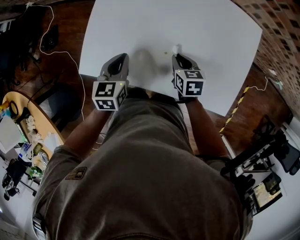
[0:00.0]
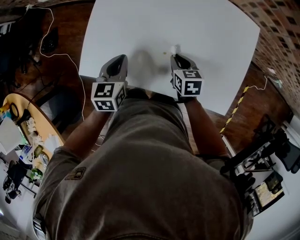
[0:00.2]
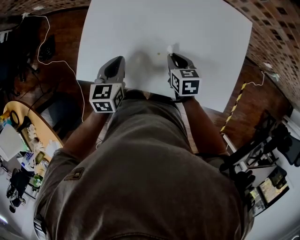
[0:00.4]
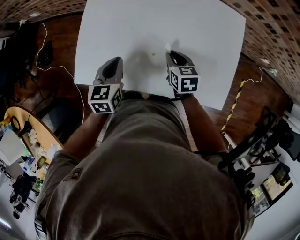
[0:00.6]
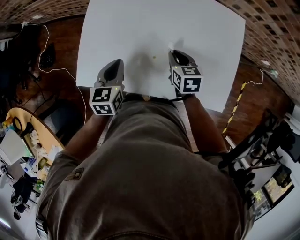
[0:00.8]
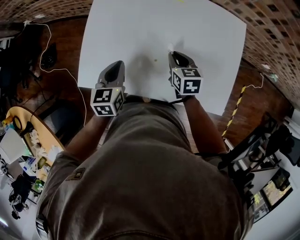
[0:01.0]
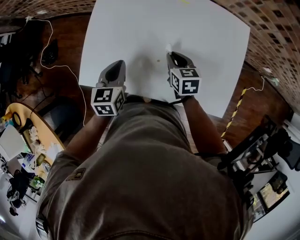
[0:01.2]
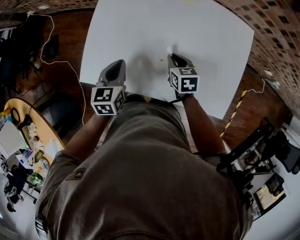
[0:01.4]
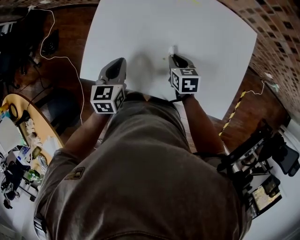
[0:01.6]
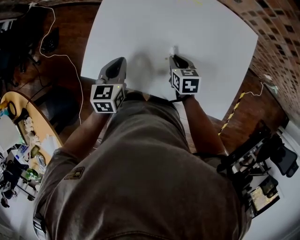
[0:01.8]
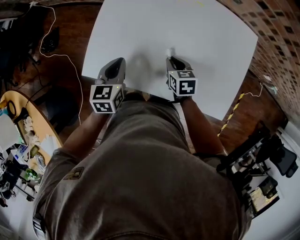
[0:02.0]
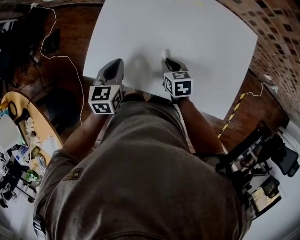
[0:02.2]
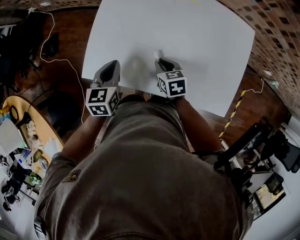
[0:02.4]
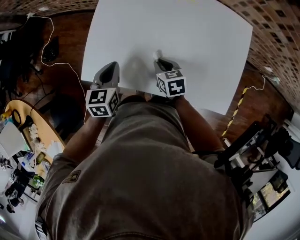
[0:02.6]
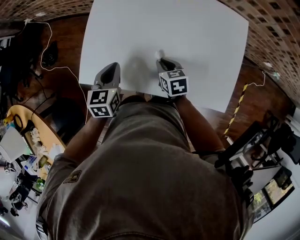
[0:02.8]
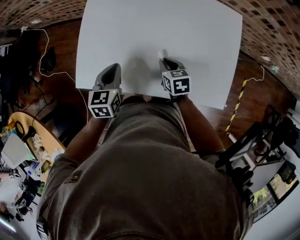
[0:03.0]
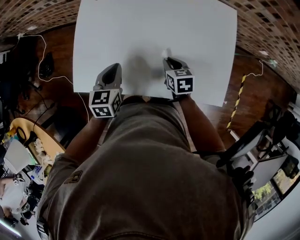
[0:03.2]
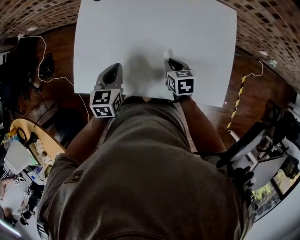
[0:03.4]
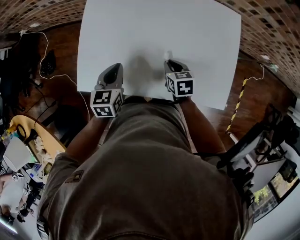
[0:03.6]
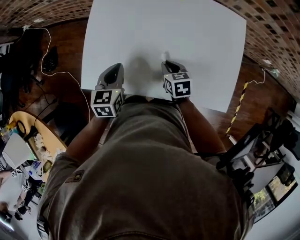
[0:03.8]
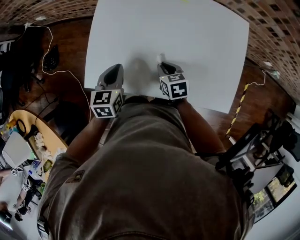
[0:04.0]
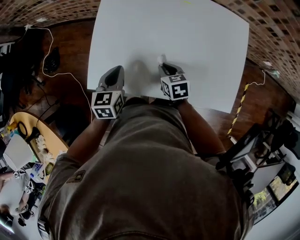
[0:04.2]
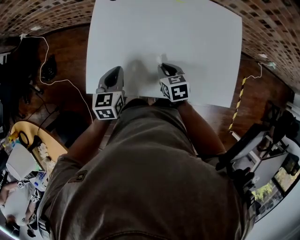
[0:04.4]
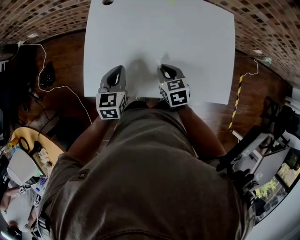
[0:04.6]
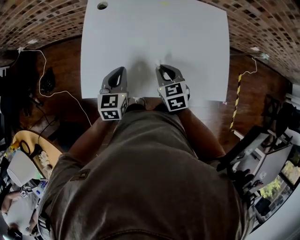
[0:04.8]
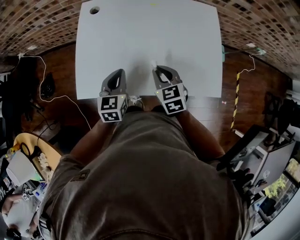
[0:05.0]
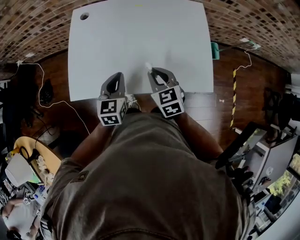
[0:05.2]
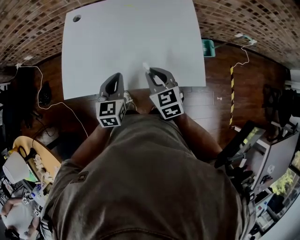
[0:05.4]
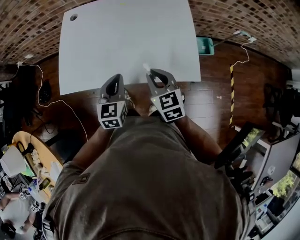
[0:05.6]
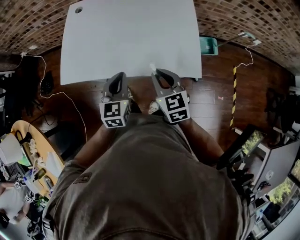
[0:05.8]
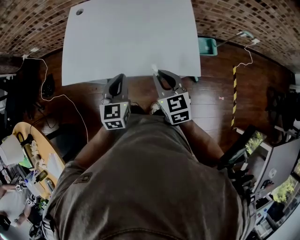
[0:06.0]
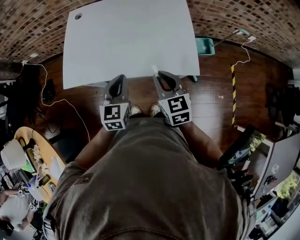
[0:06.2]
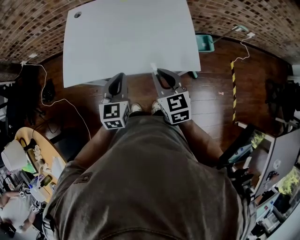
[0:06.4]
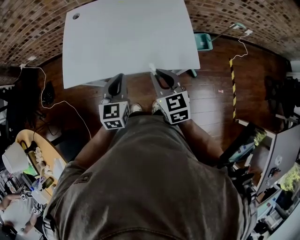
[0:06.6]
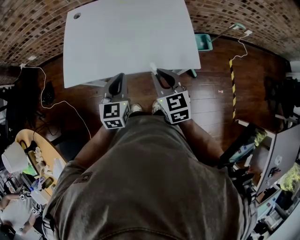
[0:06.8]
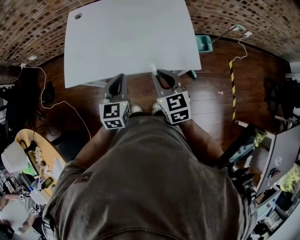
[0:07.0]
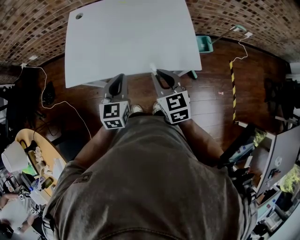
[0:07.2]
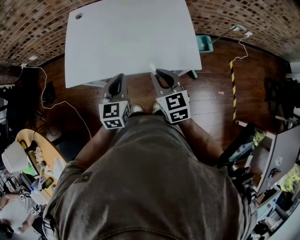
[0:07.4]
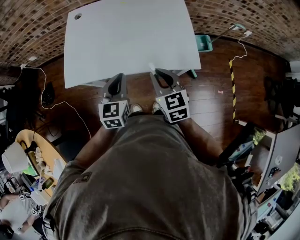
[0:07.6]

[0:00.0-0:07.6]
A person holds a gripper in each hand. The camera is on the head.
0:01.6 to 0:03.0: The grippers move only a little.
0:03.0 to 0:04.6: The right gripper moves some 5 cm.
0:04.6 to 0:06.0: The left gripper heads to the right and backward, covering approximately 25 cm. The right gripper goes about 25 cm backward, to the right and upward, and turns by some 20 degrees.
0:06.0 to 0:07.6: There are only small adjustments of the grippers.

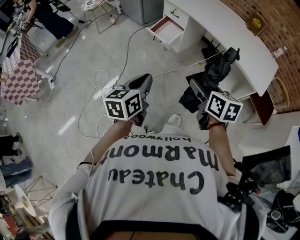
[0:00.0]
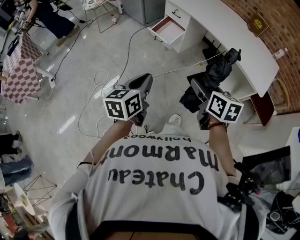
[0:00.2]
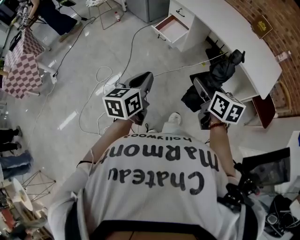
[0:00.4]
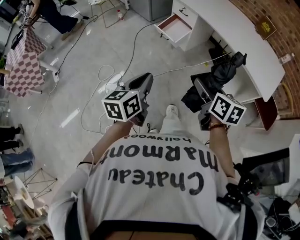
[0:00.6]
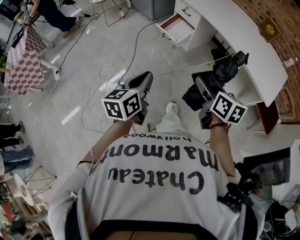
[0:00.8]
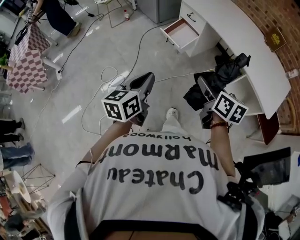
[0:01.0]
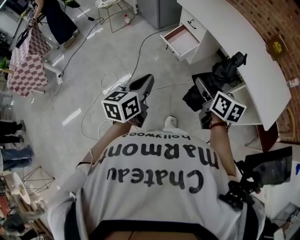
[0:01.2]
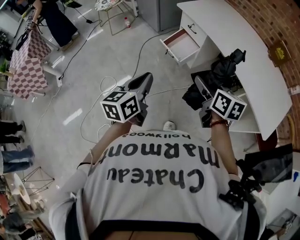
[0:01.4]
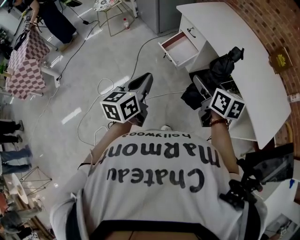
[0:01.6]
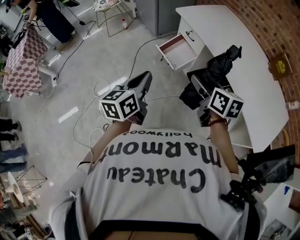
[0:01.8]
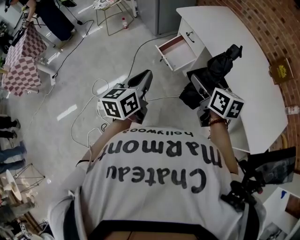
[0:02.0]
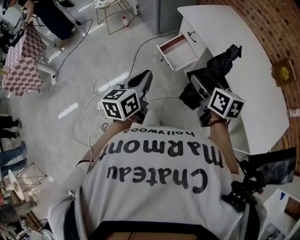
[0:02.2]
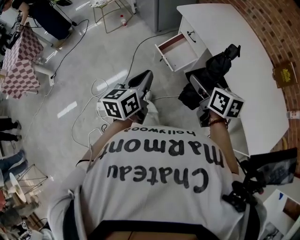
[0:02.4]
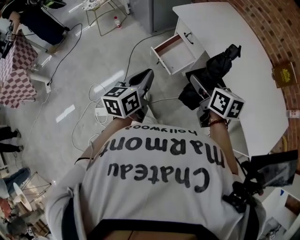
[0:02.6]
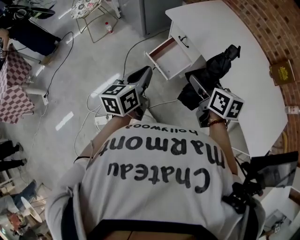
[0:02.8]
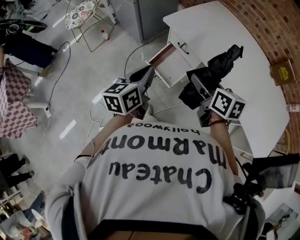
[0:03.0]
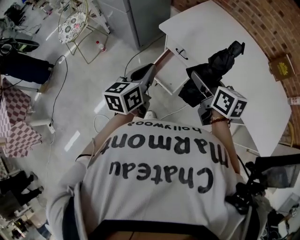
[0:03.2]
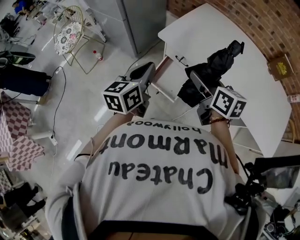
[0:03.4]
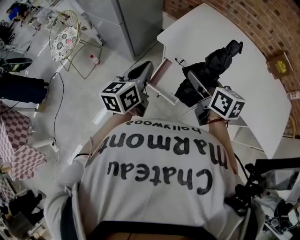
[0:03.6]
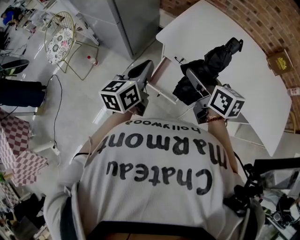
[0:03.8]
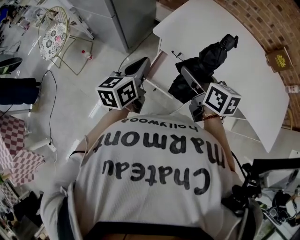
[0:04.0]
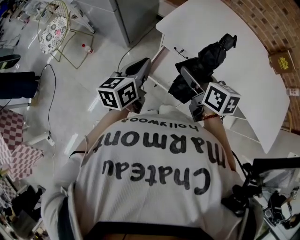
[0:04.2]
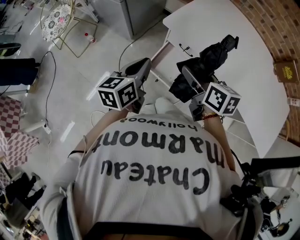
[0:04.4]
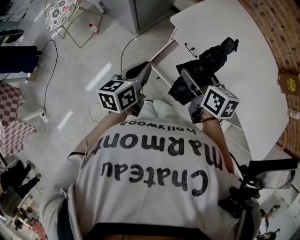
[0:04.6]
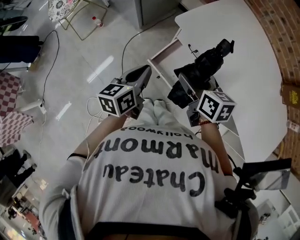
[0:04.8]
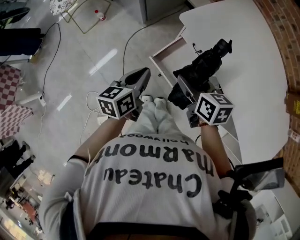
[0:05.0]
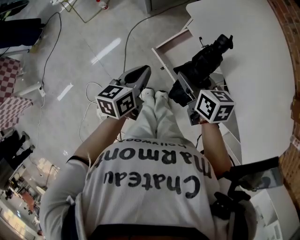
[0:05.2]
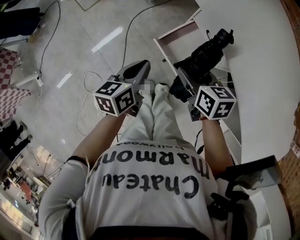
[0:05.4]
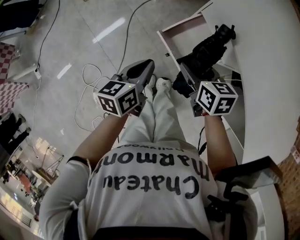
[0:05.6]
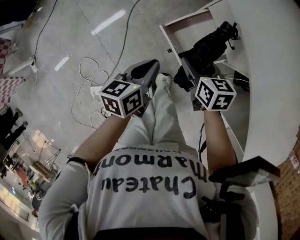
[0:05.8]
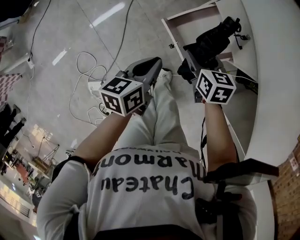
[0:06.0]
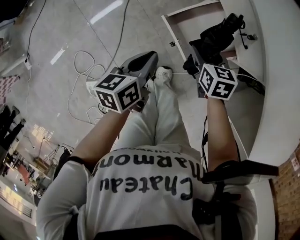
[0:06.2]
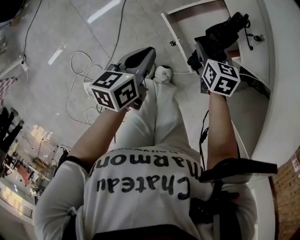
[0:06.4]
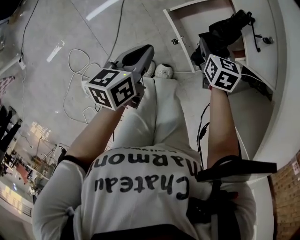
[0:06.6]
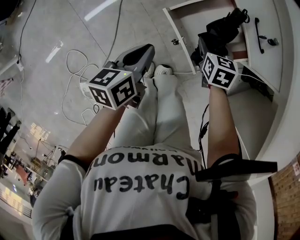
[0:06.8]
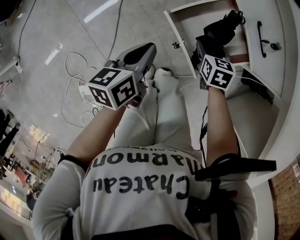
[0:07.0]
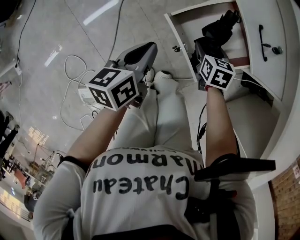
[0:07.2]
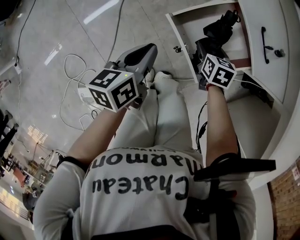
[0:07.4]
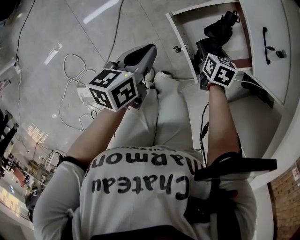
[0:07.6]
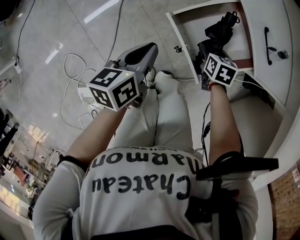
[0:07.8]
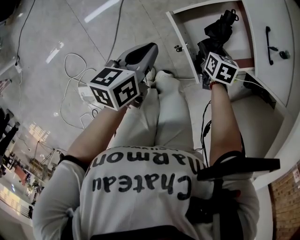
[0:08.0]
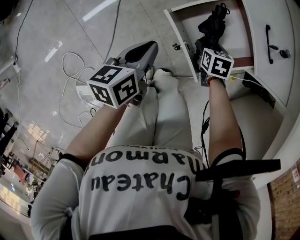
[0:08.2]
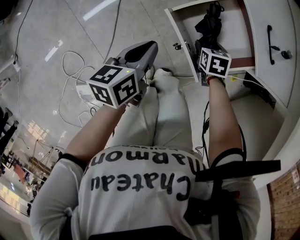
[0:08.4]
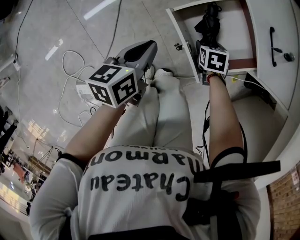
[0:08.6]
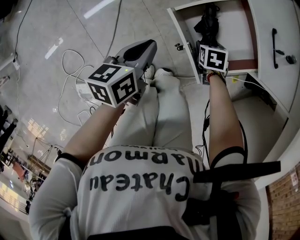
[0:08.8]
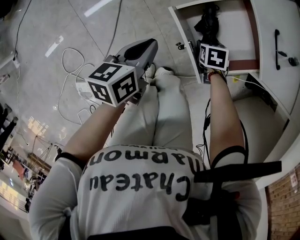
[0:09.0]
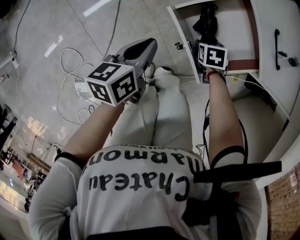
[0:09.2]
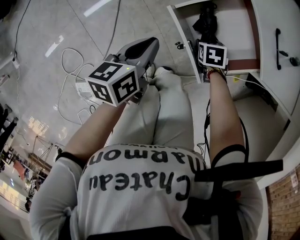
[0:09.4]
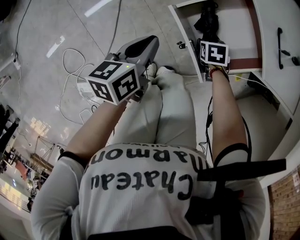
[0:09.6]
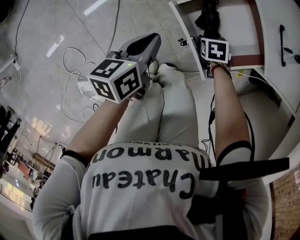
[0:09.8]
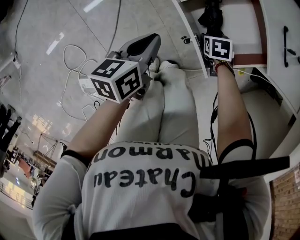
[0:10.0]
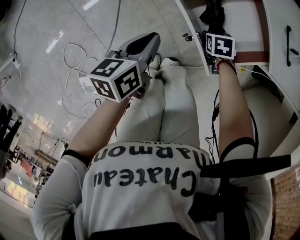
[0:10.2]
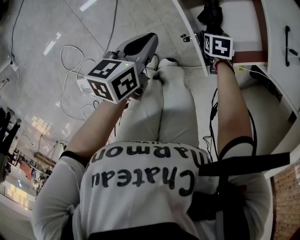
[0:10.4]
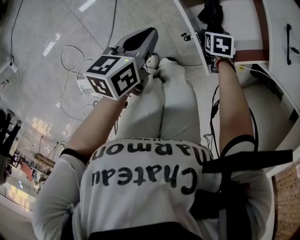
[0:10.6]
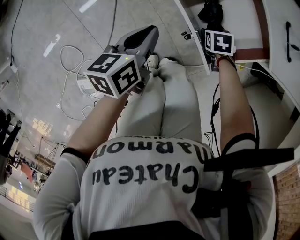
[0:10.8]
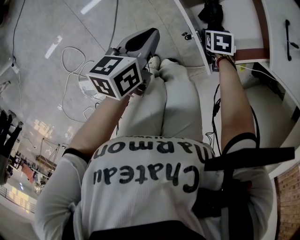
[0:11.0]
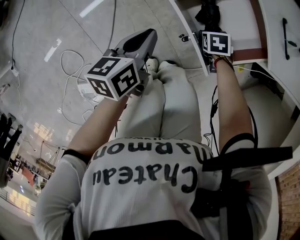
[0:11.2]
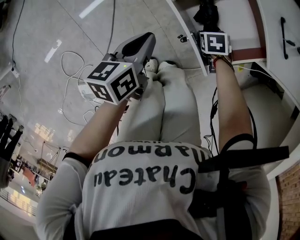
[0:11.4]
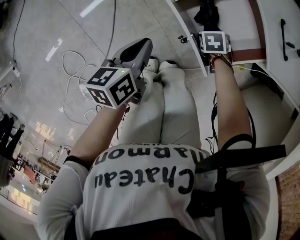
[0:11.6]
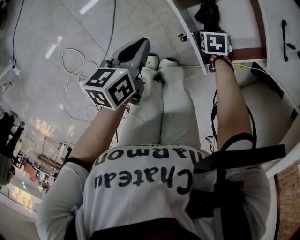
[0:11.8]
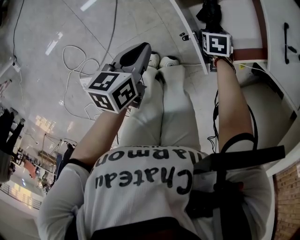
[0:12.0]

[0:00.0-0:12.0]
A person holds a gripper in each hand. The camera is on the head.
0:00.0 to 0:01.6: The two grippers go approximately 25 cm forward.
0:01.6 to 0:03.0: Both grippers move forward, some 30 cm.
0:03.0 to 0:04.4: The grippers both shift forward and to the left by about 15 cm.
0:04.4 to 0:06.0: The two grippers go approximately 30 cm downward. The right gripper rotates some 30 degrees; the left gripper rotates approximately 30 degrees.
0:06.0 to 0:07.6: The right gripper travels downward by roughly 20 cm, while the left gripper travels downward by about 15 cm.
0:07.6 to 0:09.0: The right gripper moves downward, approximately 10 cm, and swivels about 20 degrees.
0:09.0 to 0:12.0: The grippers stay close to where they were, moving slightly.

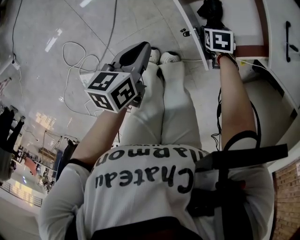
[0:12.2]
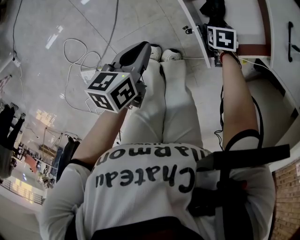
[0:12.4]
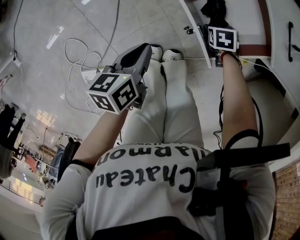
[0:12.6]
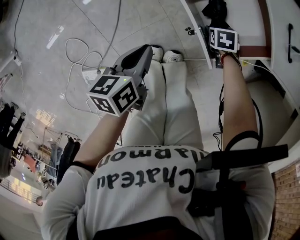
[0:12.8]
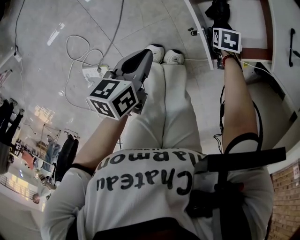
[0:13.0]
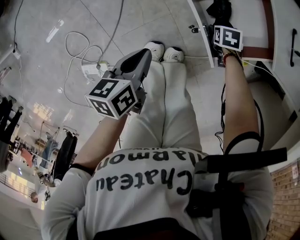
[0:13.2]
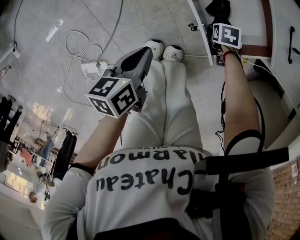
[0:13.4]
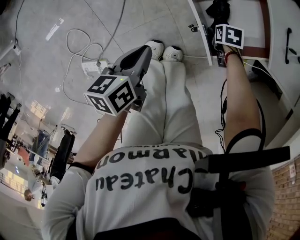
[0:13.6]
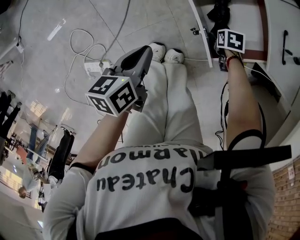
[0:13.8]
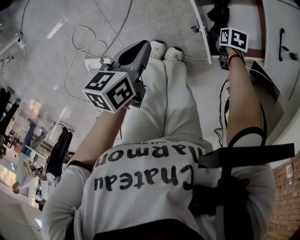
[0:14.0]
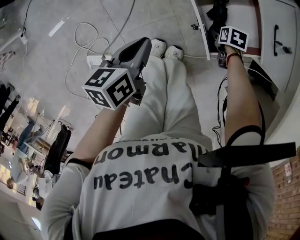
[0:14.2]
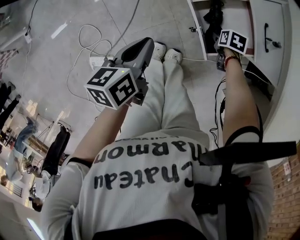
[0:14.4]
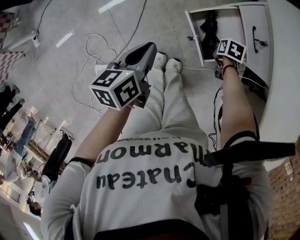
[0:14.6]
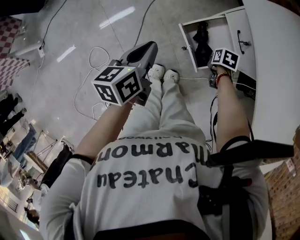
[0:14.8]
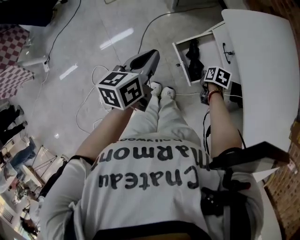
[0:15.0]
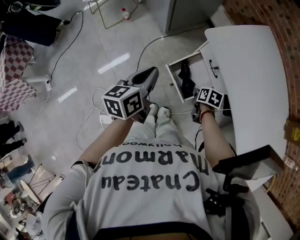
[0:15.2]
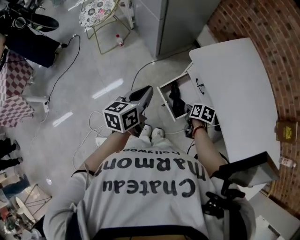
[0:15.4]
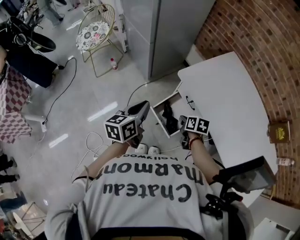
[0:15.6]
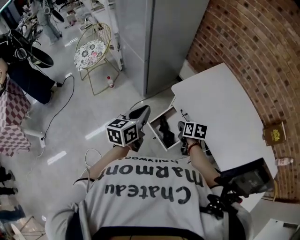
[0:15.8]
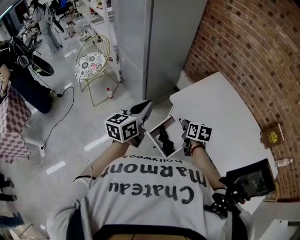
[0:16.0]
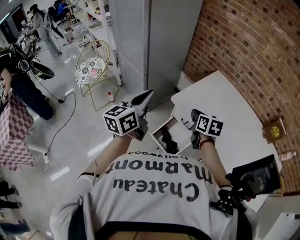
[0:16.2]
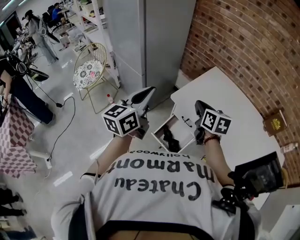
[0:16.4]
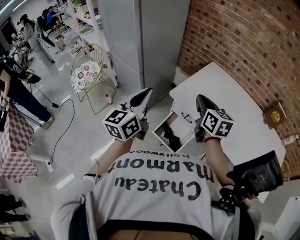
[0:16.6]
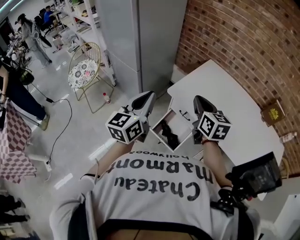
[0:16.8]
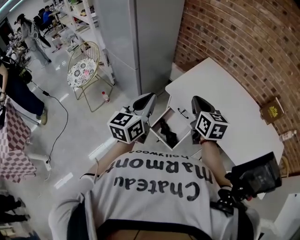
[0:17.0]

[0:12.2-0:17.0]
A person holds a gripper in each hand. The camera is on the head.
0:12.2 to 0:13.8: The left gripper shifts approximately 5 cm upward.
0:13.8 to 0:15.4: Both grippers travel together upward, roughly 40 cm. The right gripper turns by some 40 degrees, and closes its fingers, while the left gripper swivels roughly 30 degrees.
0:15.4 to 0:17.0: The right gripper travels upward by roughly 35 cm, and tips its fingers upward by some 40 degrees. Meanwhile the left gripper goes about 20 cm upward, and swivels some 30 degrees.
